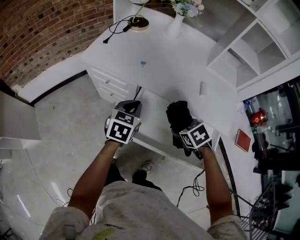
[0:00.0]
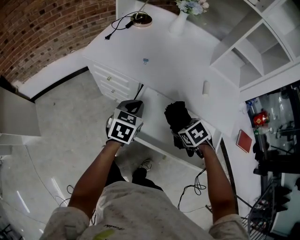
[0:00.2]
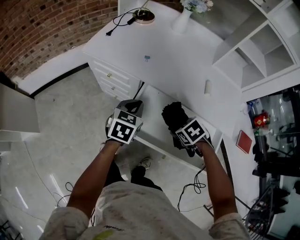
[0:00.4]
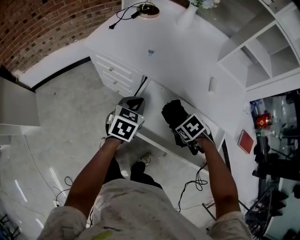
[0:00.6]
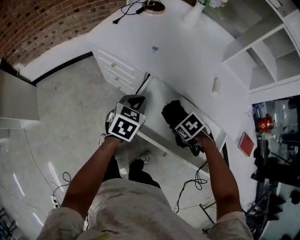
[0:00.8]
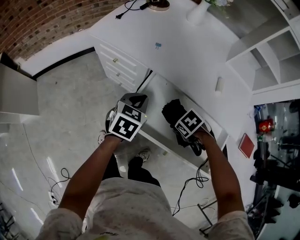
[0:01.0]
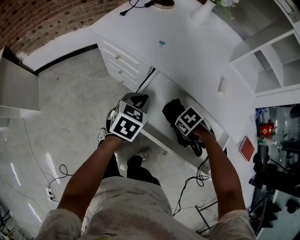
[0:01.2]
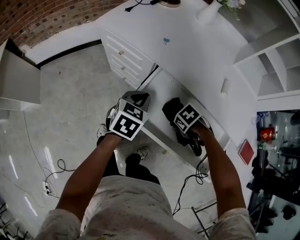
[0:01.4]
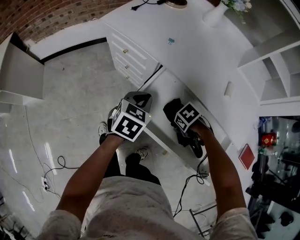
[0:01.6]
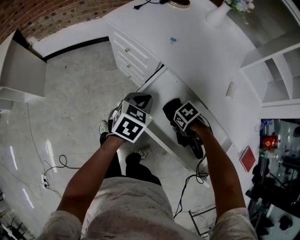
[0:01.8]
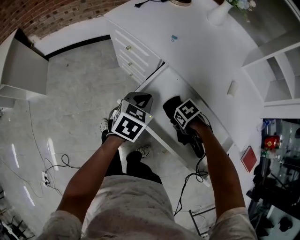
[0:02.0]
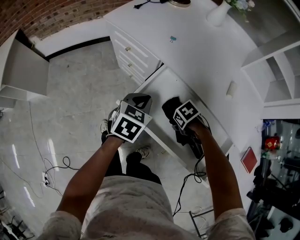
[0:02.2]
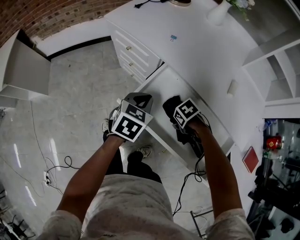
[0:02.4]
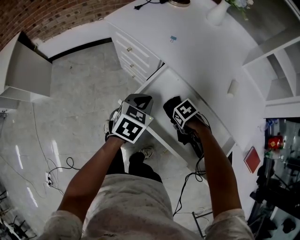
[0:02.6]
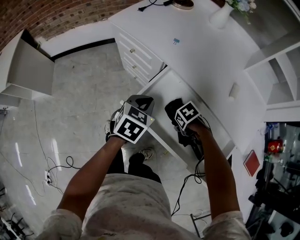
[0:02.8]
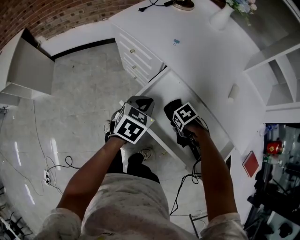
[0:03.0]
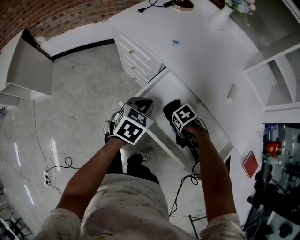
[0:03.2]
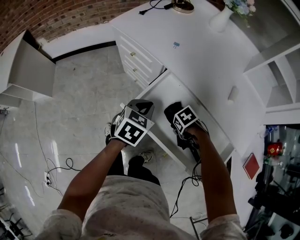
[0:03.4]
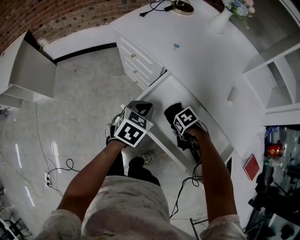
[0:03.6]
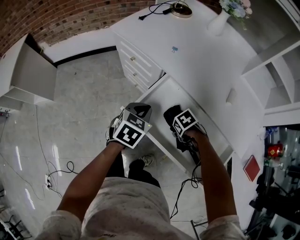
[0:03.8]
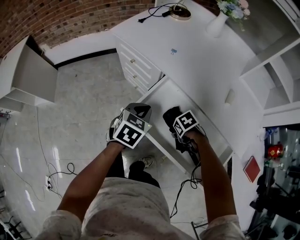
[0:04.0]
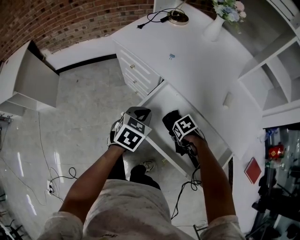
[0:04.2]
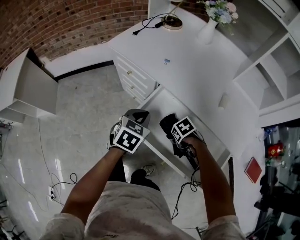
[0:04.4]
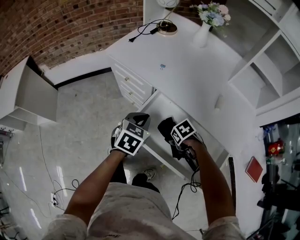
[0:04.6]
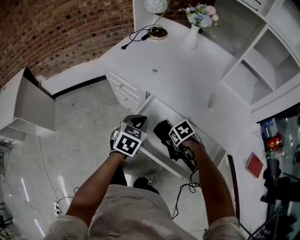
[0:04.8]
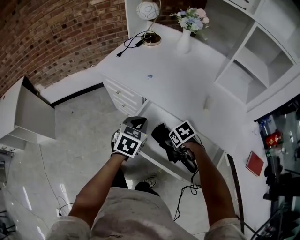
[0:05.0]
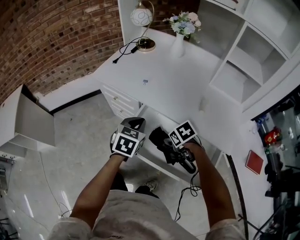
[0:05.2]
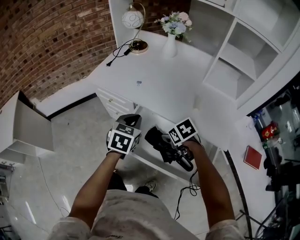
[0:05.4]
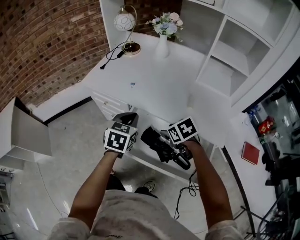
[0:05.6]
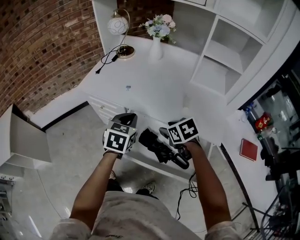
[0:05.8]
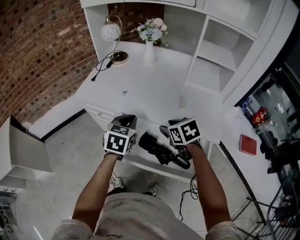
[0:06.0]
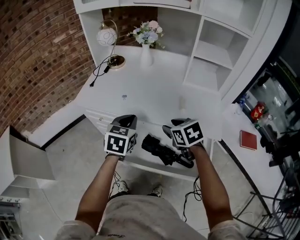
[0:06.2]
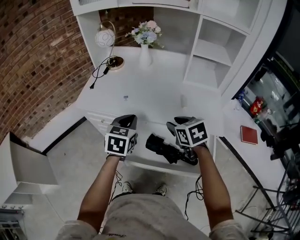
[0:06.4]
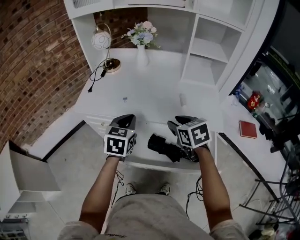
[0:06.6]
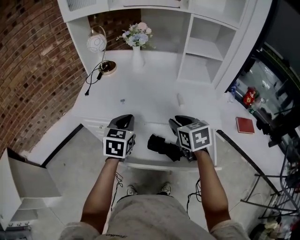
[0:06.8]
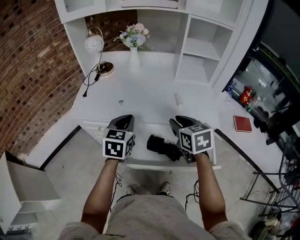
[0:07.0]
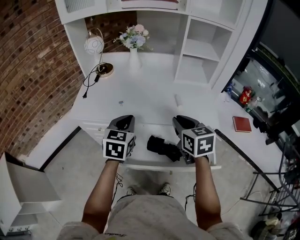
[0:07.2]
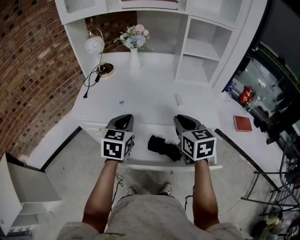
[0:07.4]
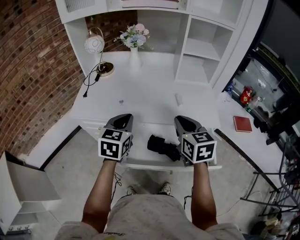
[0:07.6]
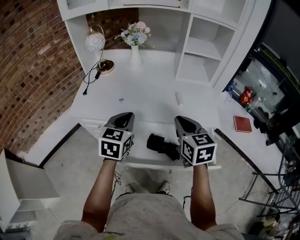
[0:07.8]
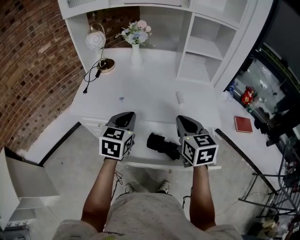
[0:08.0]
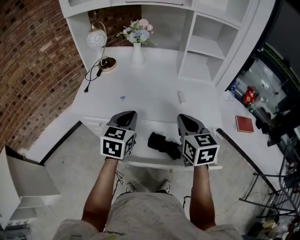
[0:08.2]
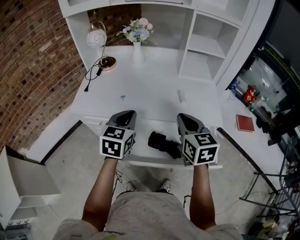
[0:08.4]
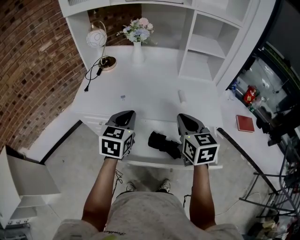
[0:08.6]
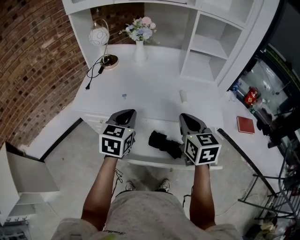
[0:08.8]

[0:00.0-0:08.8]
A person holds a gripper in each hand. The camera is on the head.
0:00.0 to 0:01.4: The right gripper shifts roughly 15 cm downward, and rotates approximately 30 degrees, while the left gripper goes approximately 5 cm downward.
0:01.4 to 0:04.4: The grippers make only small movements.
0:04.4 to 0:05.8: The right gripper shifts some 20 cm upward, and swivels approximately 40 degrees; the left gripper travels upward by roughly 10 cm.
0:05.8 to 0:07.4: The left gripper heads upward, covering approximately 5 cm; the right gripper travels upward by roughly 15 cm, changes its angle by about 40 degrees, and closes up.
0:07.4 to 0:08.8: Both grippers stay about where they are.

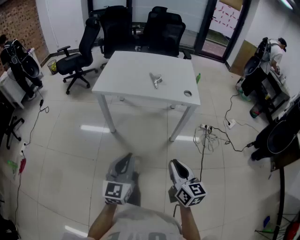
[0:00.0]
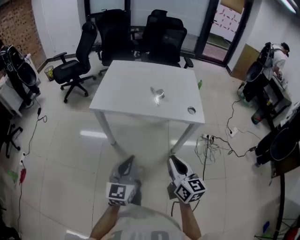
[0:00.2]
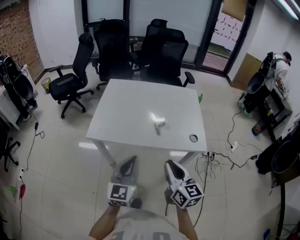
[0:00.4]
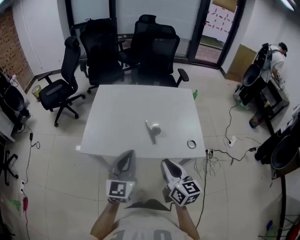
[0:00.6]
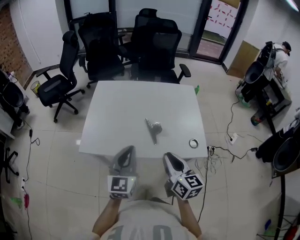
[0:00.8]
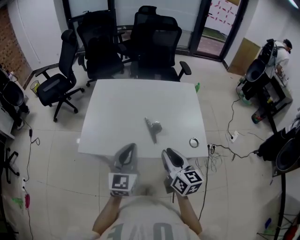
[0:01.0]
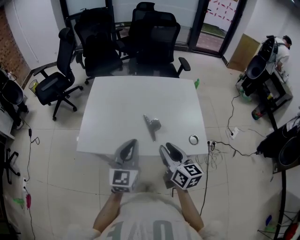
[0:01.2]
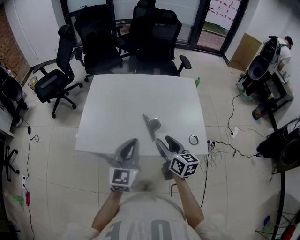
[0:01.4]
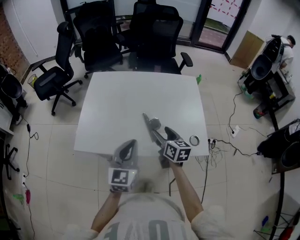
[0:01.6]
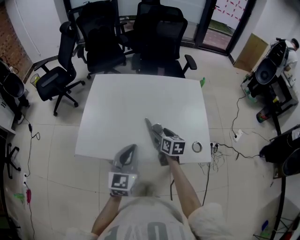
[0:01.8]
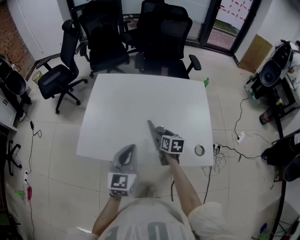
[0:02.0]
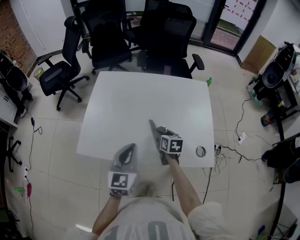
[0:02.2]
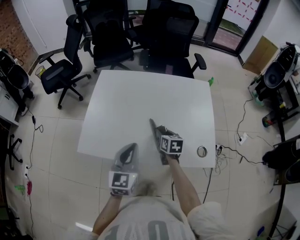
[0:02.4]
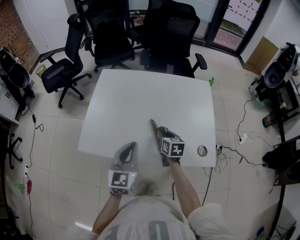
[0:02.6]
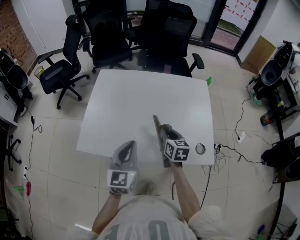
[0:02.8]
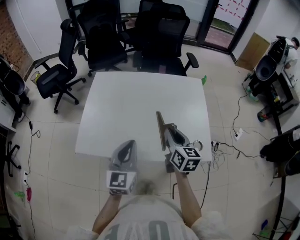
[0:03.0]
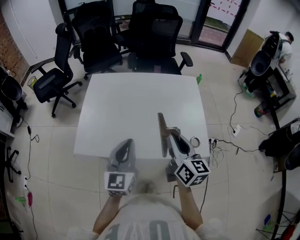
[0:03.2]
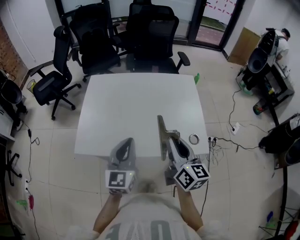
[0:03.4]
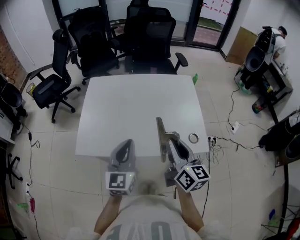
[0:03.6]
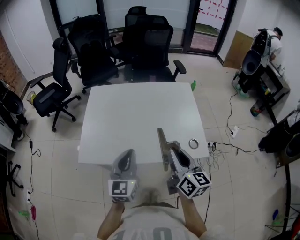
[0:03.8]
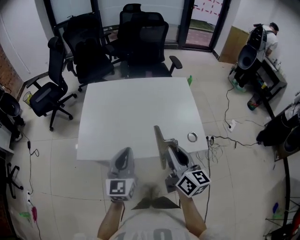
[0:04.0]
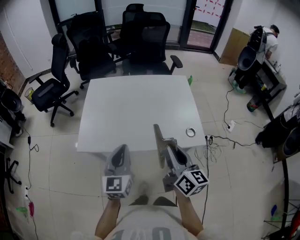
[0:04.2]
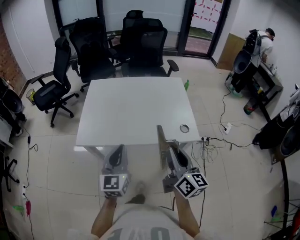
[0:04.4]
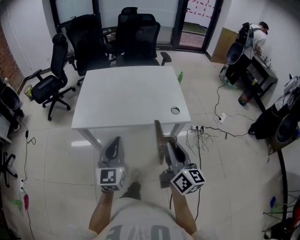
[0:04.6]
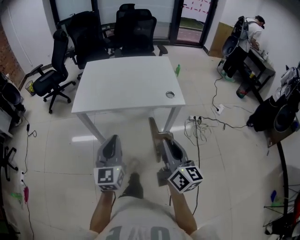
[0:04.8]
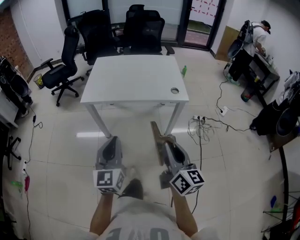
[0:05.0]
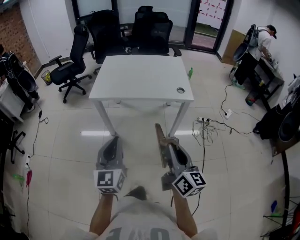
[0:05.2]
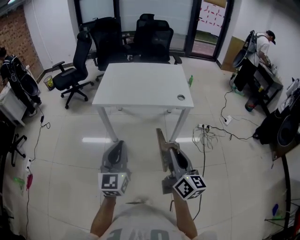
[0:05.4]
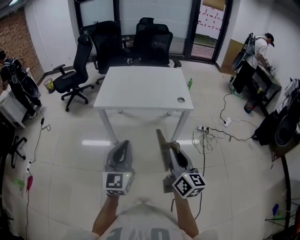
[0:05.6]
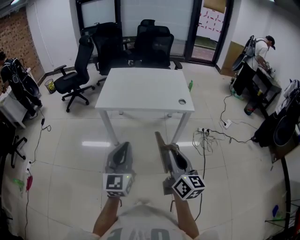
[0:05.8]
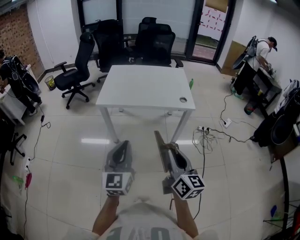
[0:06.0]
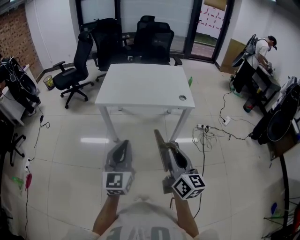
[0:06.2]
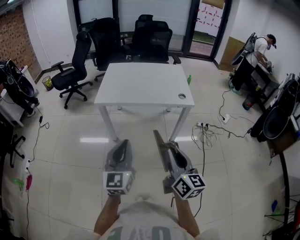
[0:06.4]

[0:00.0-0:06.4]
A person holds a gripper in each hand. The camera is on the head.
0:00.0 to 0:01.6: The pair of grippers is taken forward, roughly 50 cm. The right gripper opens.
0:01.6 to 0:03.2: The right gripper shifts about 15 cm upward and backward, and closes.
0:03.2 to 0:04.8: Both grippers travel together backward, roughly 35 cm.
0:04.8 to 0:06.4: The two grippers go some 15 cm backward and to the left.

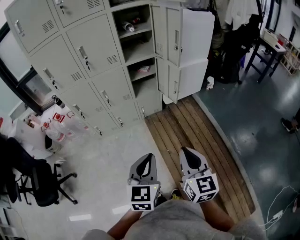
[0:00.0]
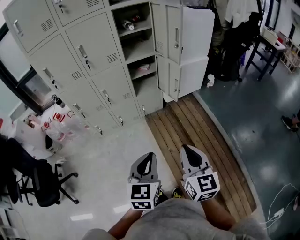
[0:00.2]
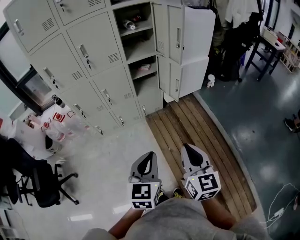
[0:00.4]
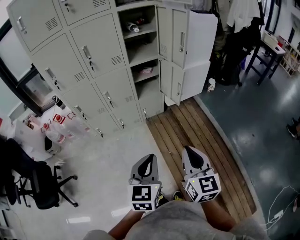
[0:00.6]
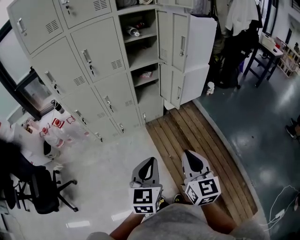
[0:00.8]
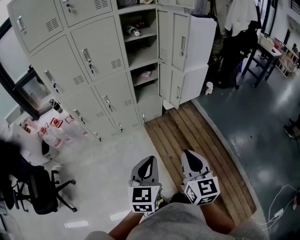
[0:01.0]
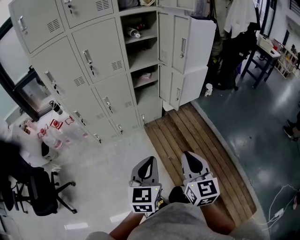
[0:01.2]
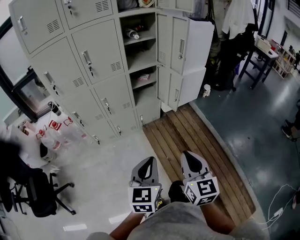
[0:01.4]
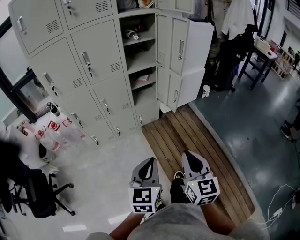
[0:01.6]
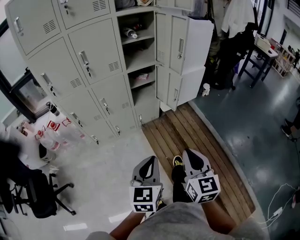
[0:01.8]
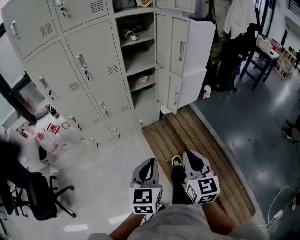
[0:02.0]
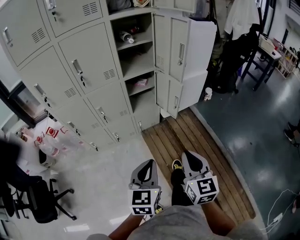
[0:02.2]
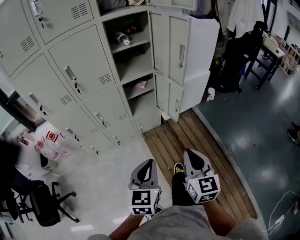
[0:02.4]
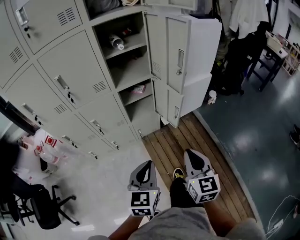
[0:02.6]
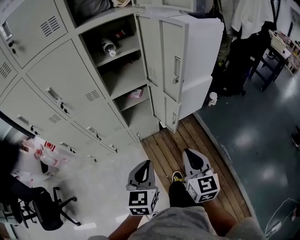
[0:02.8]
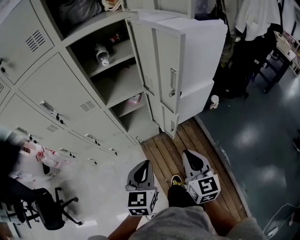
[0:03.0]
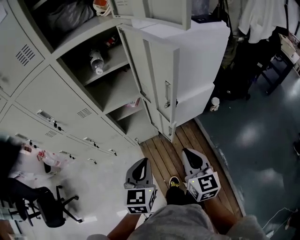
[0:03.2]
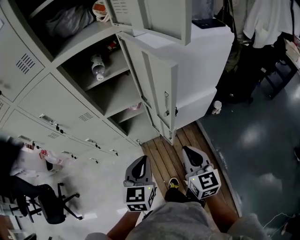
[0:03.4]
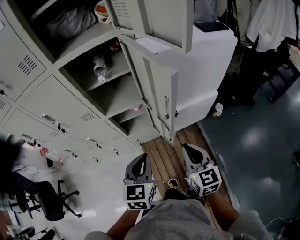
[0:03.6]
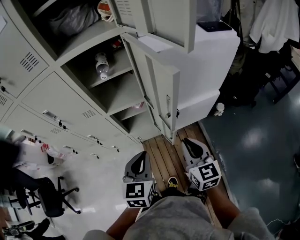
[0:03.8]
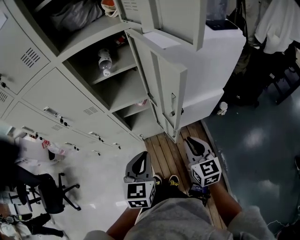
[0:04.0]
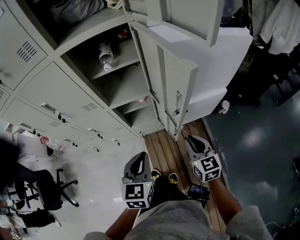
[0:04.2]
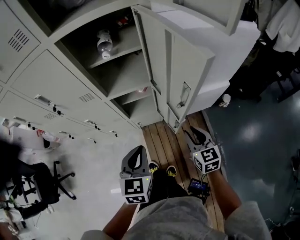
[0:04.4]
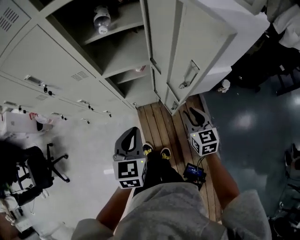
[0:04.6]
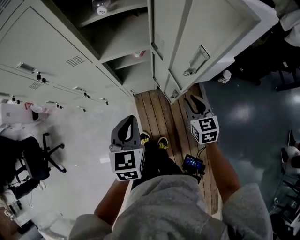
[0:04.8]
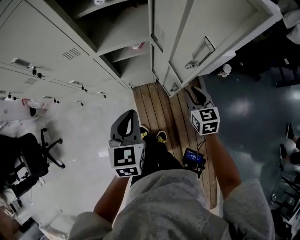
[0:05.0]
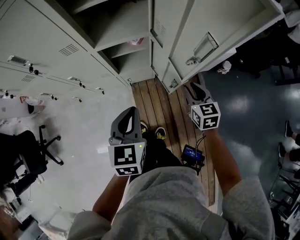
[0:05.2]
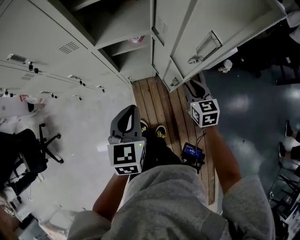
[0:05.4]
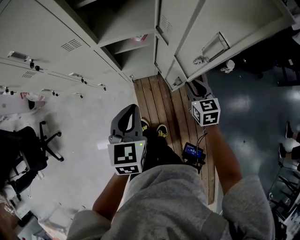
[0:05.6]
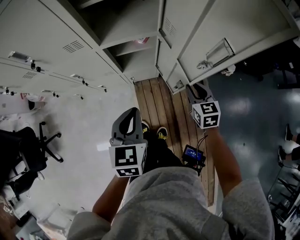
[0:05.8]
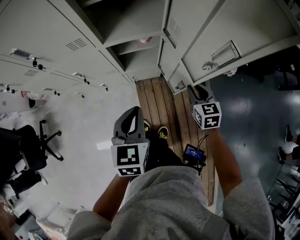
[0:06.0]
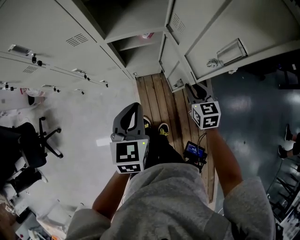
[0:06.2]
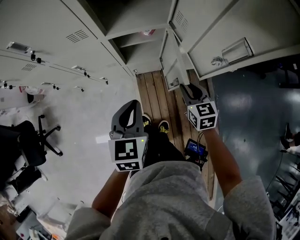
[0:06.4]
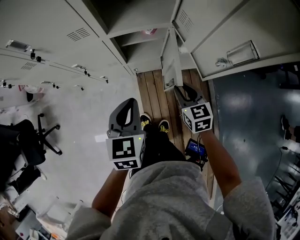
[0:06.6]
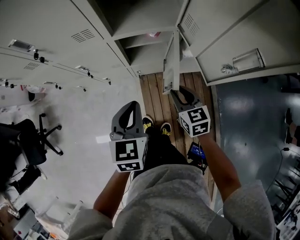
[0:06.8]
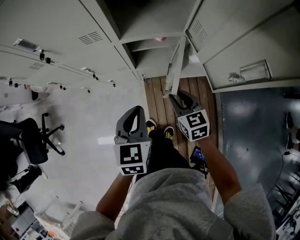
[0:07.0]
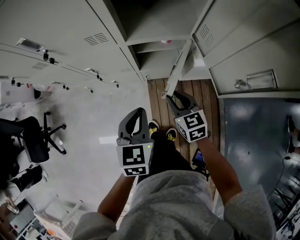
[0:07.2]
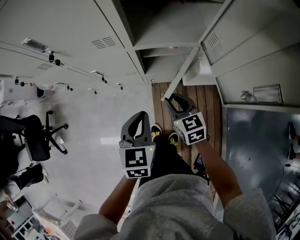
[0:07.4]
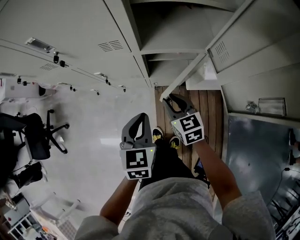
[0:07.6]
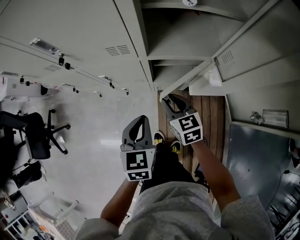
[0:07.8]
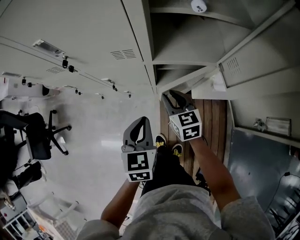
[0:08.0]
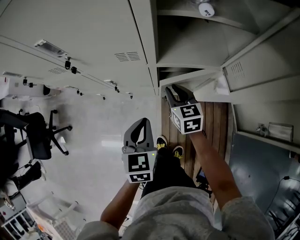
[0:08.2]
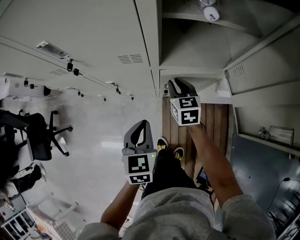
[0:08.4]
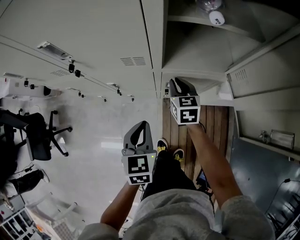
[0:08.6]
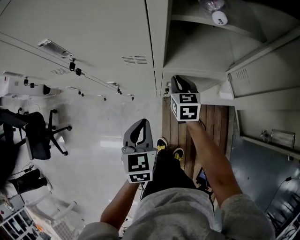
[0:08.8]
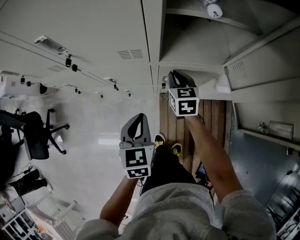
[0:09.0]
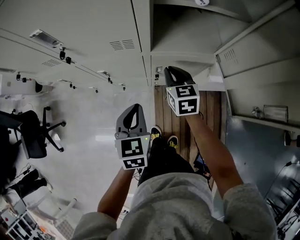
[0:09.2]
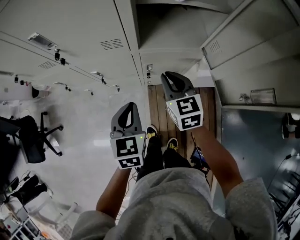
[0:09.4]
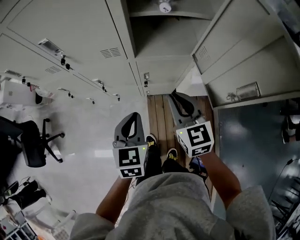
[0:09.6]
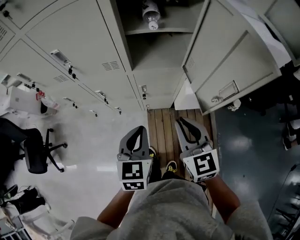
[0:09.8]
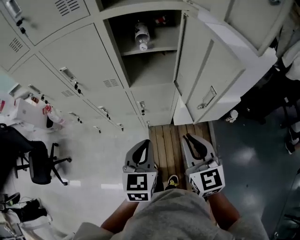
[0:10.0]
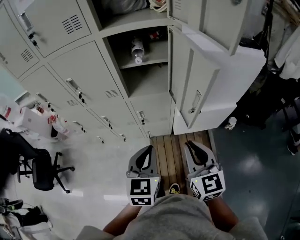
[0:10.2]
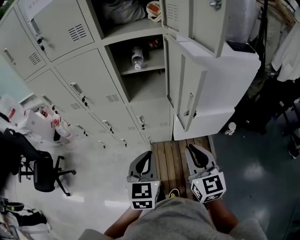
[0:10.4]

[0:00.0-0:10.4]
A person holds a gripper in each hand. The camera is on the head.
0:00.0 to 0:01.4: Both grippers travel together to the left, roughly 5 cm.
0:01.4 to 0:03.0: The grippers both shift forward by some 35 cm.
0:03.0 to 0:04.4: The right gripper travels forward and downward by roughly 15 cm. Meanwhile the left gripper moves forward, approximately 10 cm.
0:04.4 to 0:06.0: The right gripper travels downward and forward by about 10 cm. The left gripper goes approximately 5 cm downward.
0:06.0 to 0:07.4: The right gripper travels to the left by about 20 cm, while the left gripper is displaced to the left by about 10 cm.
0:07.4 to 0:09.0: The left gripper heads to the left and forward, covering approximately 10 cm. The right gripper moves forward, about 20 cm.
0:09.0 to 0:10.4: The left gripper is displaced backward, upward and to the right by approximately 35 cm. Meanwhile the right gripper travels backward, upward and to the right by about 50 cm, and swivels roughly 20 degrees.
